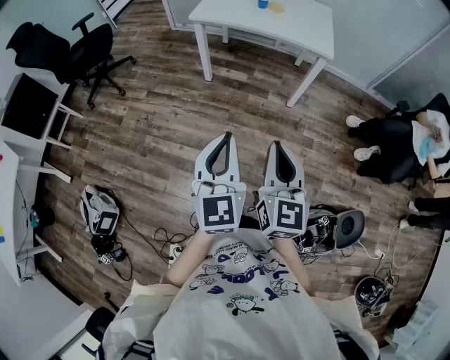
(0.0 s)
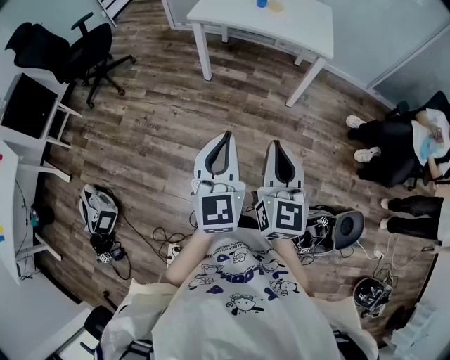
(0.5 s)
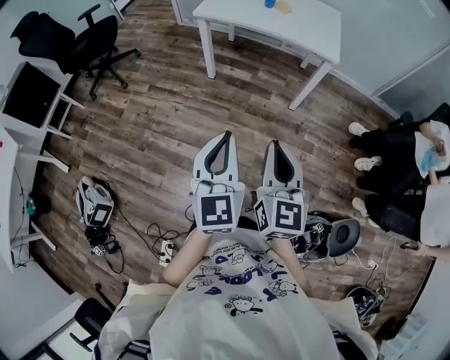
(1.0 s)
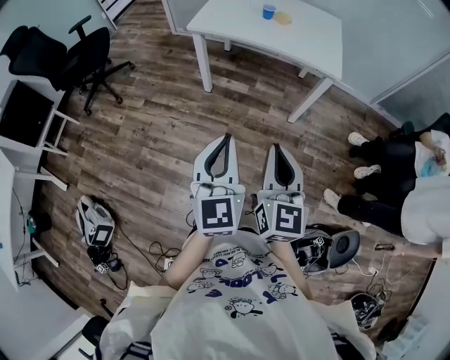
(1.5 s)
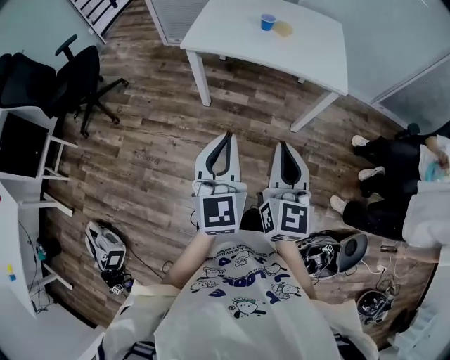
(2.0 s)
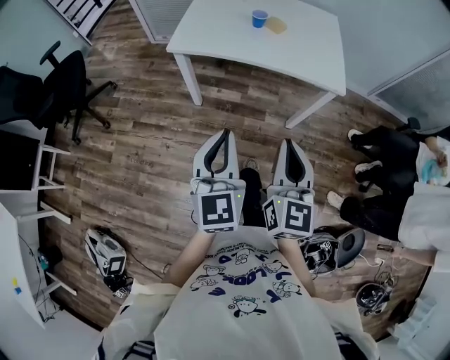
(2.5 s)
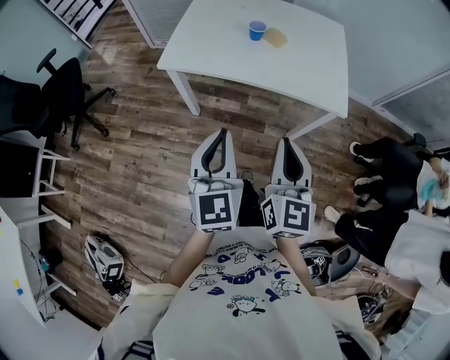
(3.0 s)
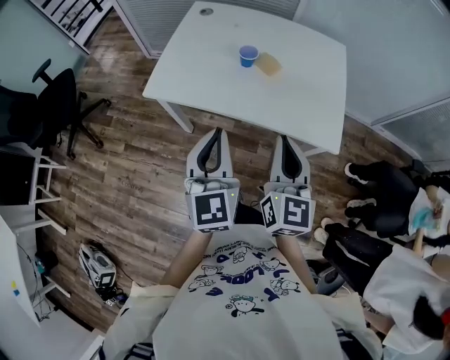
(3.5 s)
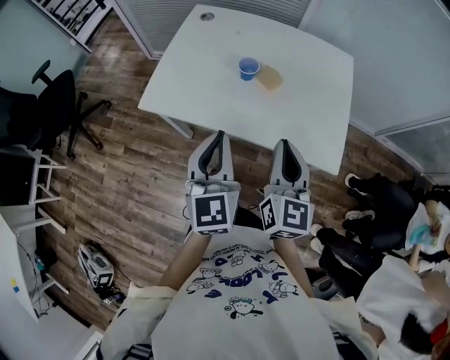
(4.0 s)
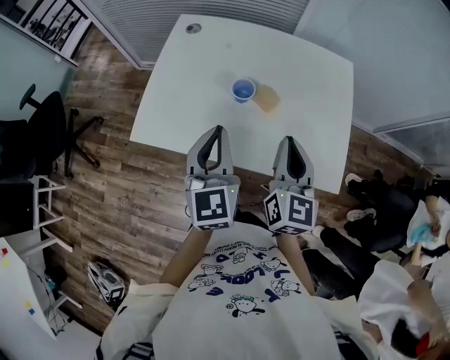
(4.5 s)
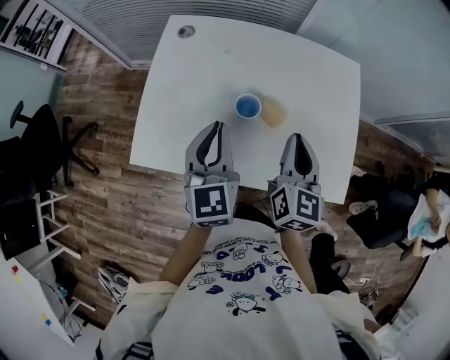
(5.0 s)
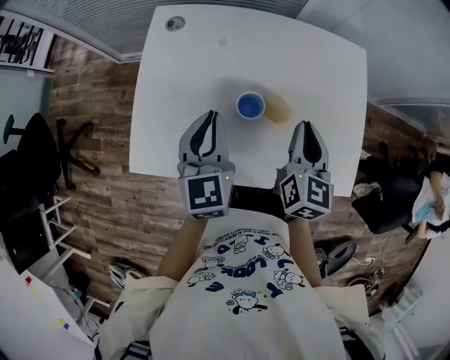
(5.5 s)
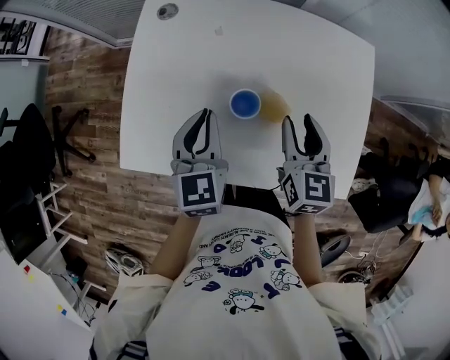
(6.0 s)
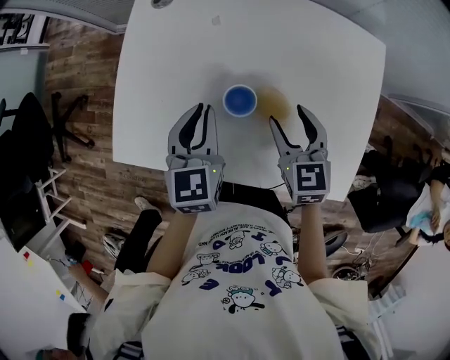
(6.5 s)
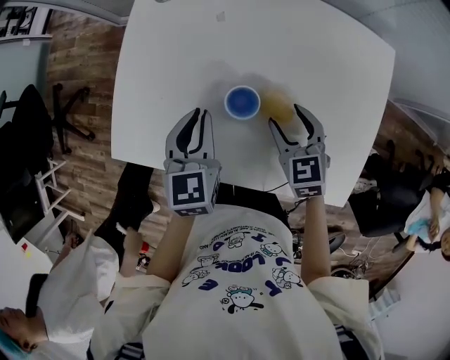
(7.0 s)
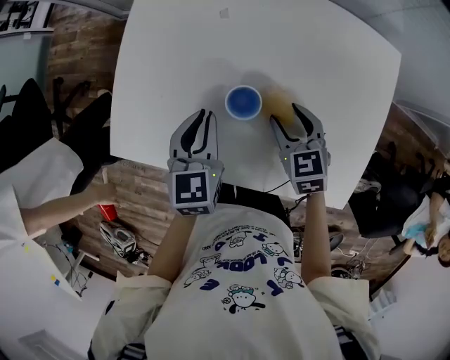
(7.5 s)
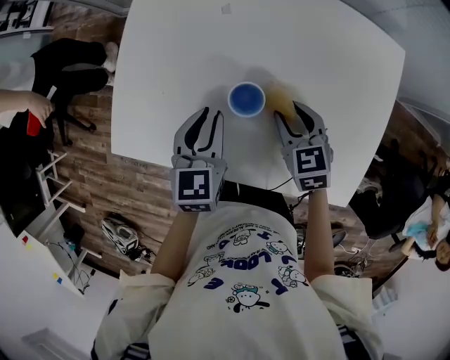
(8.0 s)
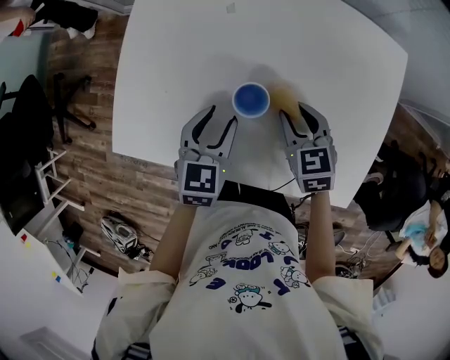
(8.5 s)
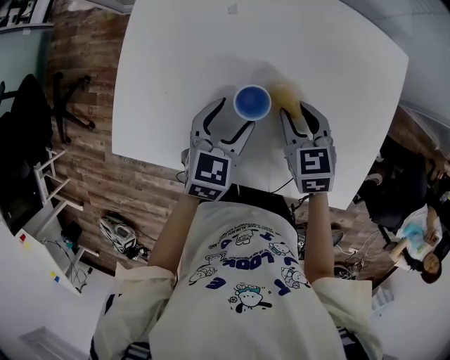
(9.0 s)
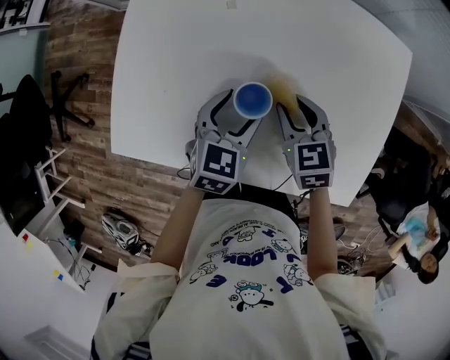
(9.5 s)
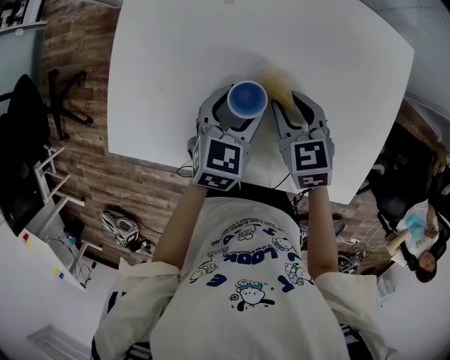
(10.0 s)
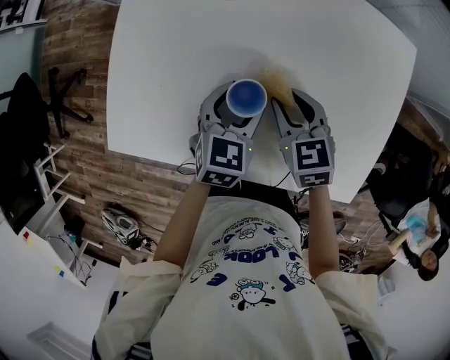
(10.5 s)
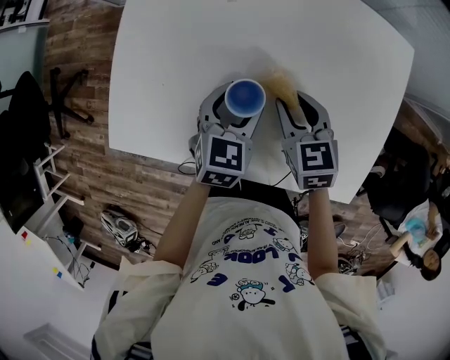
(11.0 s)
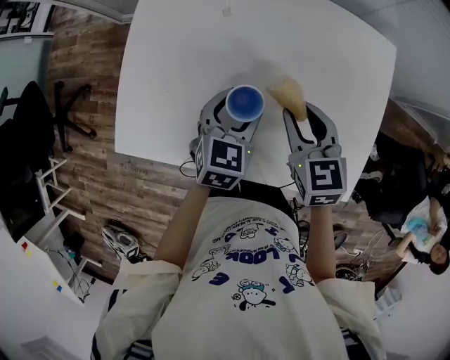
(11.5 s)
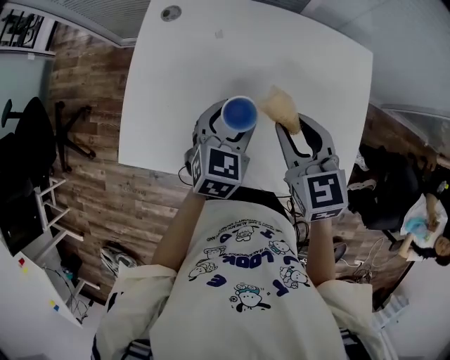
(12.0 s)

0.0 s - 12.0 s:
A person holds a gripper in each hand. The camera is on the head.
0.0 s - 2.0 s: Both grippers travel together forward, approximately 25 cm.
2.0 s - 4.0 s: The two grippers go some 35 cm forward.
4.0 s - 6.0 s: The right gripper moves forward and downward, some 25 cm, and opens up; the left gripper is displaced forward by roughly 25 cm, and rotates roughly 20 degrees.
6.0 s - 8.0 s: The left gripper shifts approximately 5 cm downward, while the right gripper moves downward, roughly 10 cm, and swivels about 40 degrees.
8.0 s - 10.0 s: The left gripper moves to the right, approximately 5 cm, rotates approximately 20 degrees, and opens its fingers.
10.0 s - 12.0 s: The right gripper goes approximately 15 cm upward; the left gripper heads upward, covering approximately 5 cm.

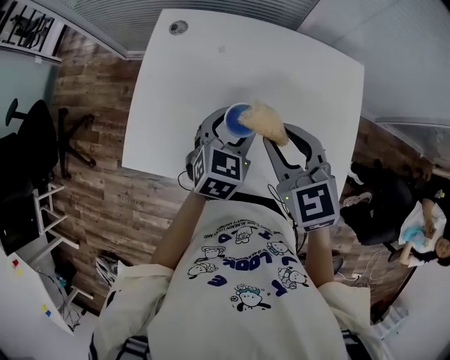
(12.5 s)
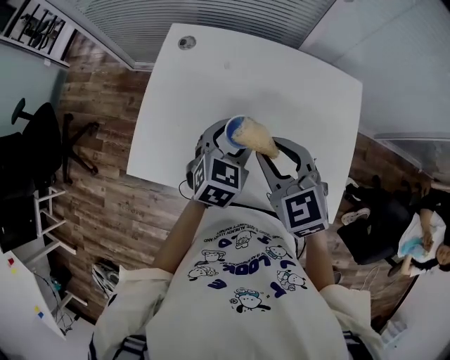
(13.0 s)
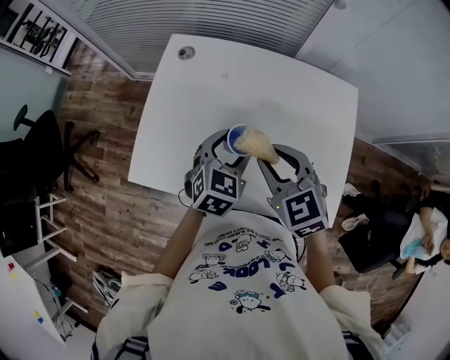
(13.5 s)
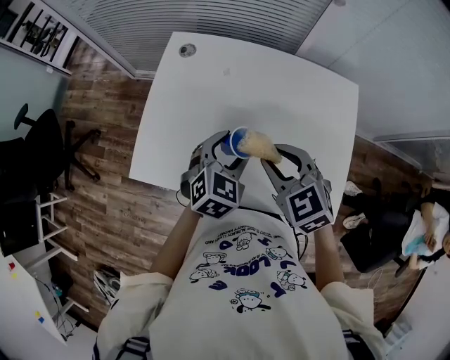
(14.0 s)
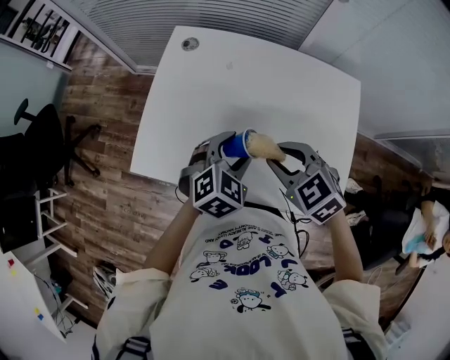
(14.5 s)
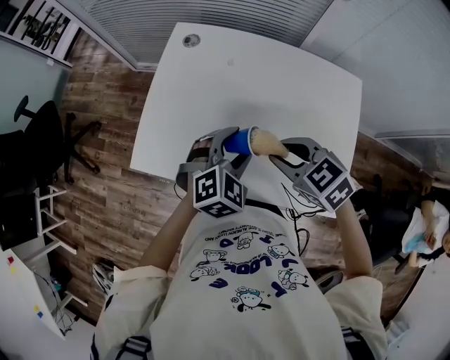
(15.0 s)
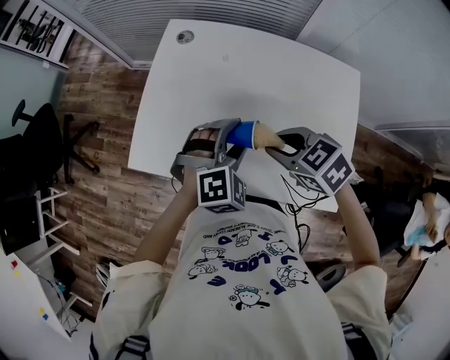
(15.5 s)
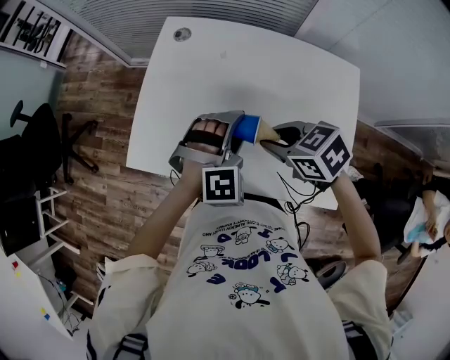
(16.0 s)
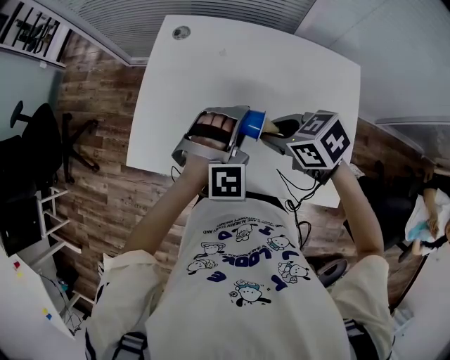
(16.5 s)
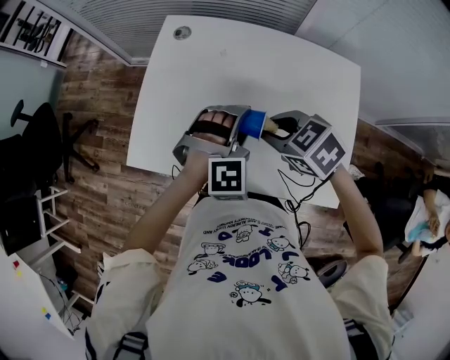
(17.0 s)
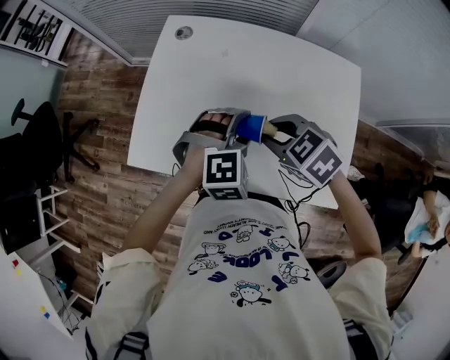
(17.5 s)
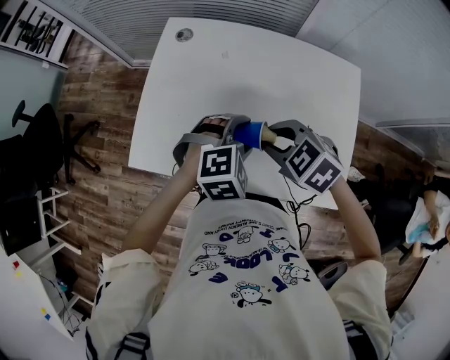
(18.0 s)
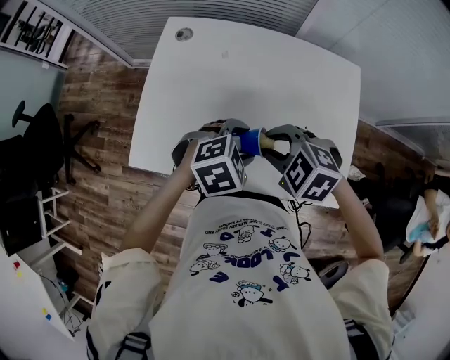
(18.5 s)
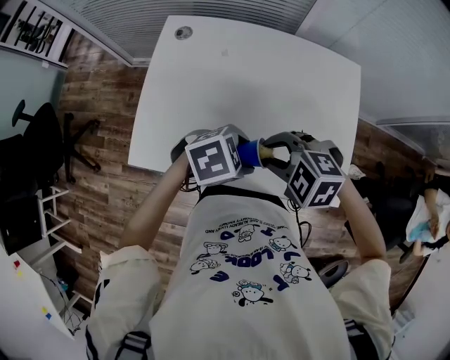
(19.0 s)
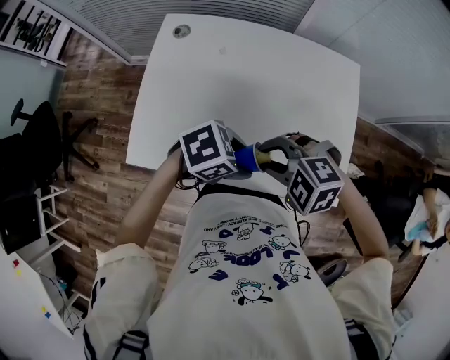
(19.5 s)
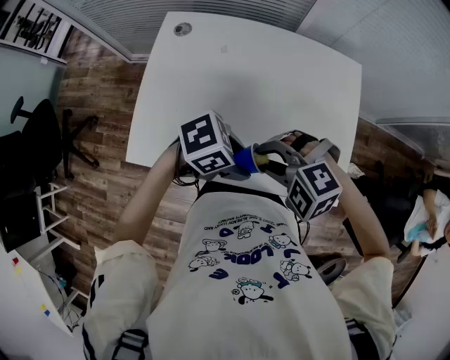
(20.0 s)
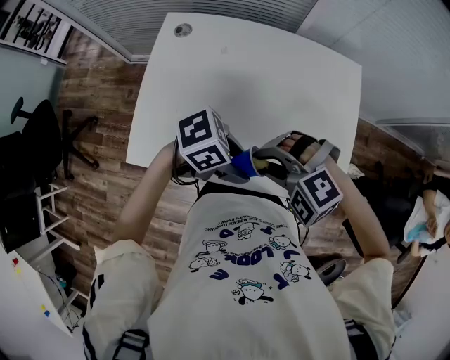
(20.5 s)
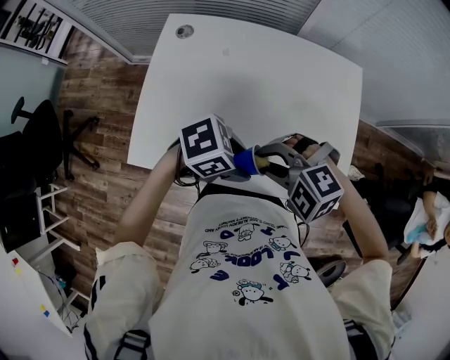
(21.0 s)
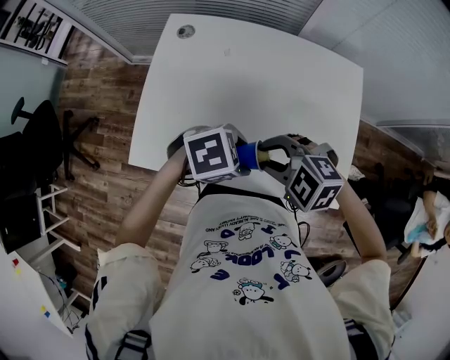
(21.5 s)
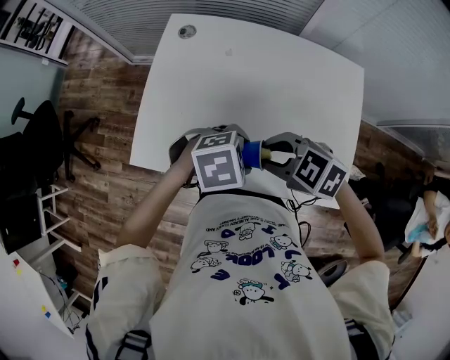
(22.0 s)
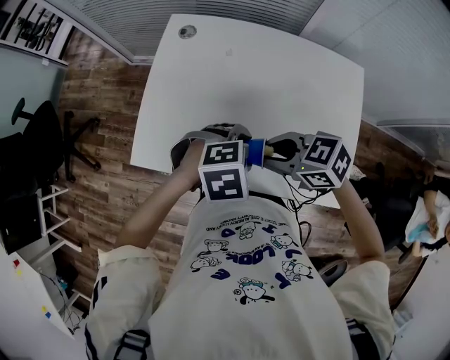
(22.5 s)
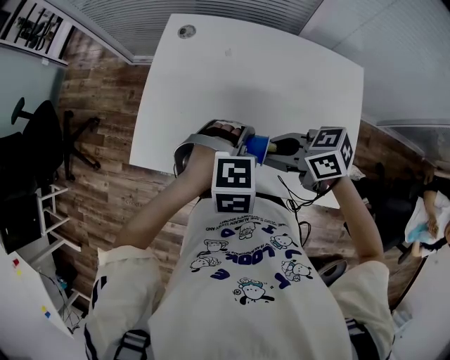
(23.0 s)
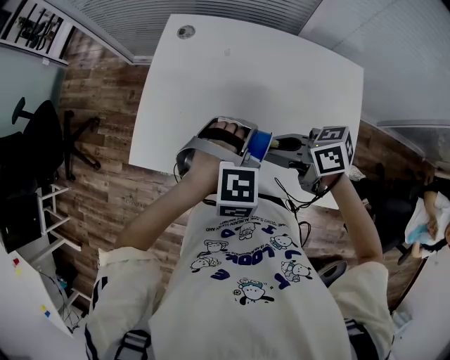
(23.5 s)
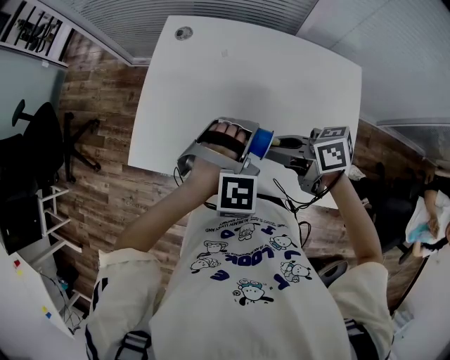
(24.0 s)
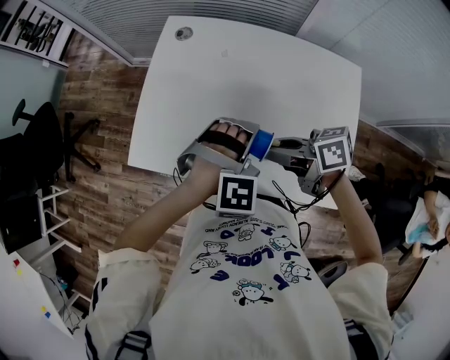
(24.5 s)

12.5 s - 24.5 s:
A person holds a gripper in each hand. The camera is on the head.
12.5 s - 14.5 s: The right gripper shifts by about 5 cm, and turns by roughly 20 degrees.
14.5 s - 16.5 s: The right gripper changes its angle by roughly 30 degrees, while the left gripper rotates around the line of its fingers by about 50 degrees, clockwise from behind.
16.5 s - 18.5 s: The right gripper rotates roughly 40 degrees; the left gripper moves approximately 5 cm, and rotates some 50 degrees.
18.5 s - 20.5 s: The right gripper changes place by about 5 cm, and changes its angle by approximately 40 degrees. Meanwhile the left gripper changes place by about 5 cm, and turns by approximately 50 degrees.
20.5 s - 22.5 s: The right gripper rotates around the line of its fingers by about 60 degrees, clockwise from behind. Meanwhile the left gripper tilts its fingers roughly 30 degrees downward.
22.5 s - 24.5 s: The left gripper turns by some 40 degrees, while the right gripper rotates approximately 40 degrees.

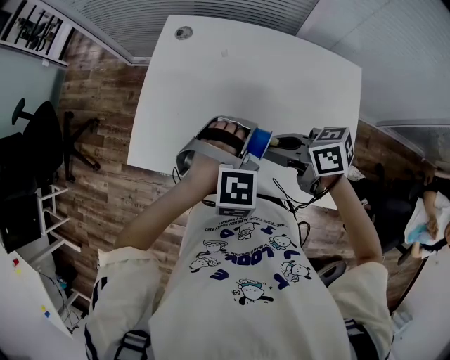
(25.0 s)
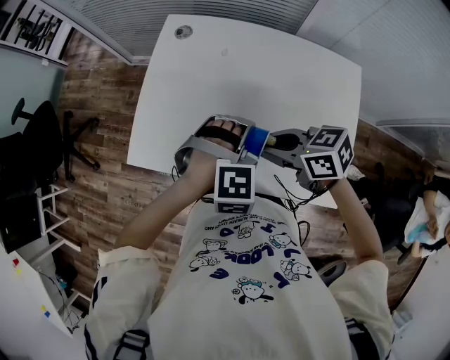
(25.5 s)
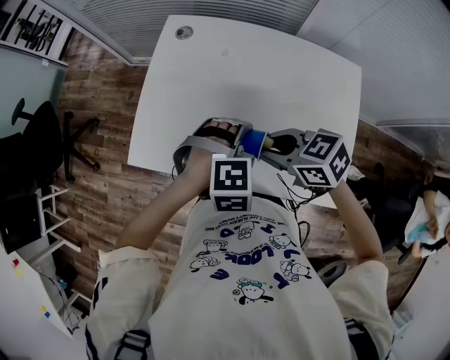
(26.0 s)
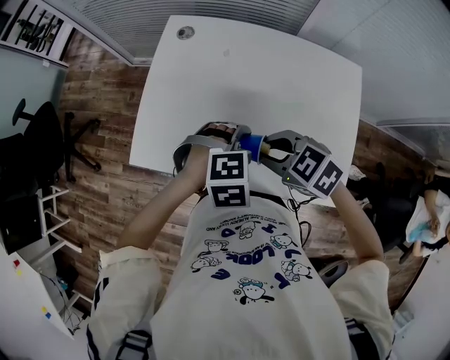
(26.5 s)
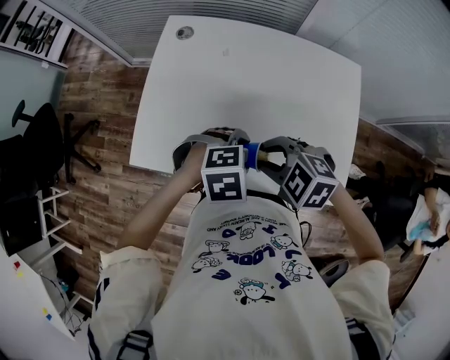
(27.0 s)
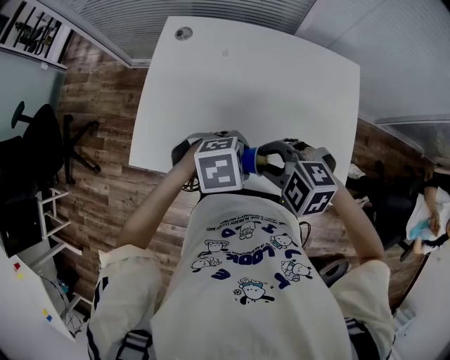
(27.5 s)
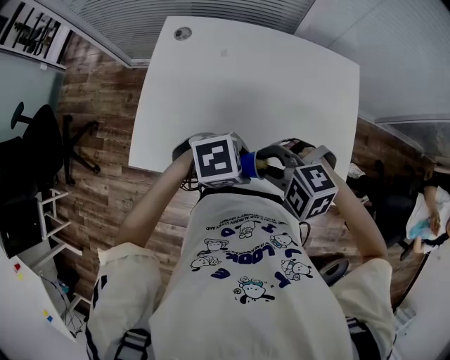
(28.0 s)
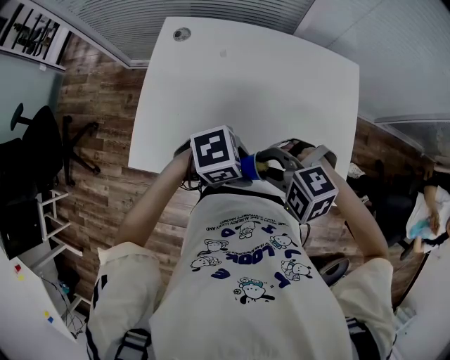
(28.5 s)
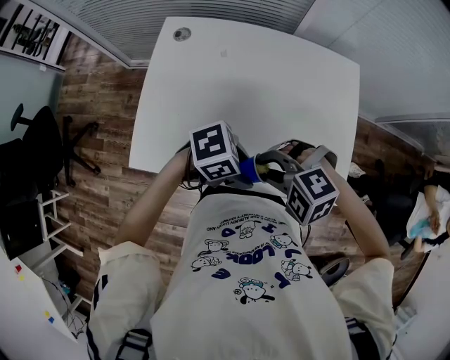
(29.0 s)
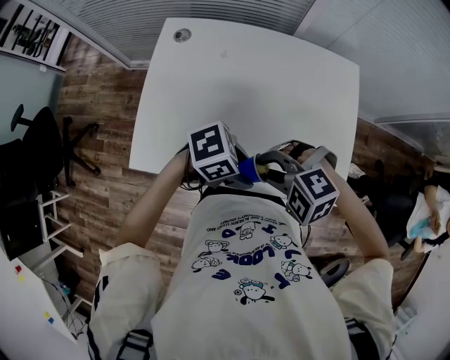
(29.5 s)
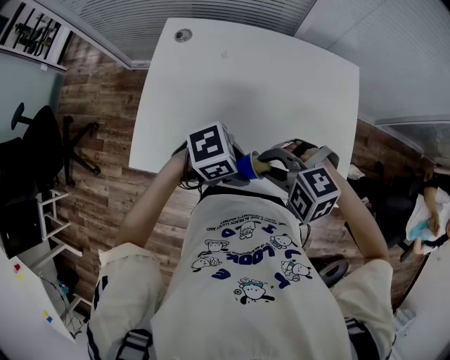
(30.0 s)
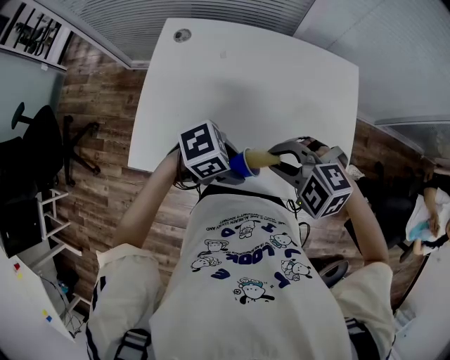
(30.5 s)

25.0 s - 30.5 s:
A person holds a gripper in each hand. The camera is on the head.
25.0 s - 27.0 s: The left gripper shifts by roughly 5 cm, and swivels some 40 degrees. The right gripper changes place by some 5 cm, and twists some 50 degrees counterclockwise, seen from behind.
27.0 s - 28.5 s: The right gripper swivels about 20 degrees; the left gripper swivels roughly 30 degrees.
28.5 s - 30.5 s: The grippers stay close to where they were, moving slightly.
